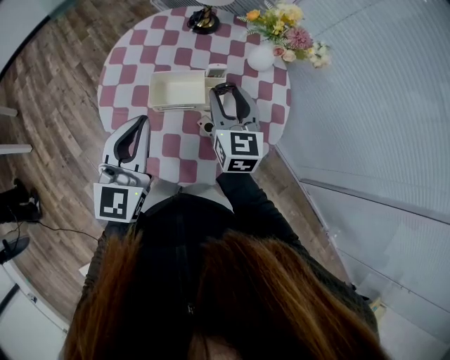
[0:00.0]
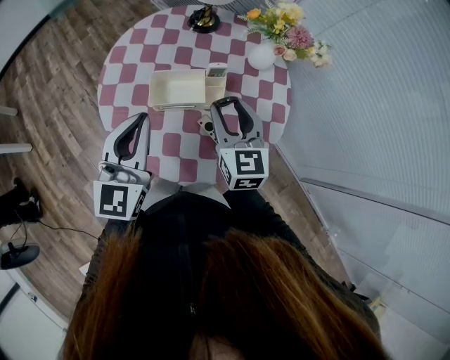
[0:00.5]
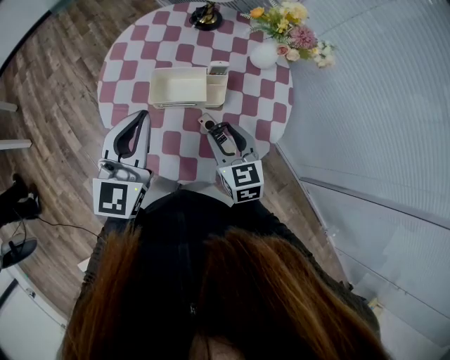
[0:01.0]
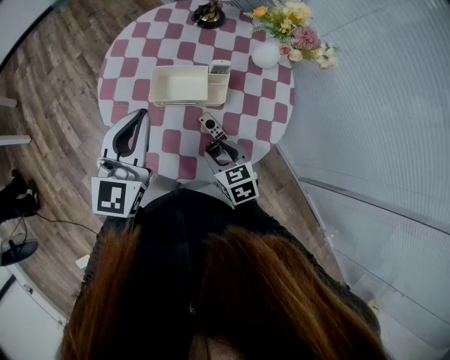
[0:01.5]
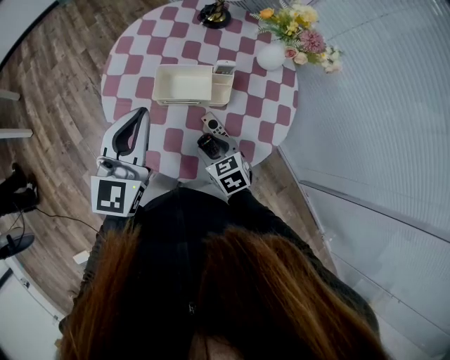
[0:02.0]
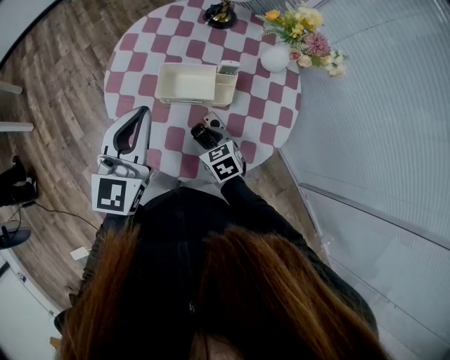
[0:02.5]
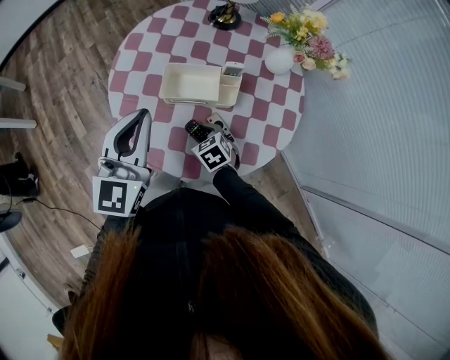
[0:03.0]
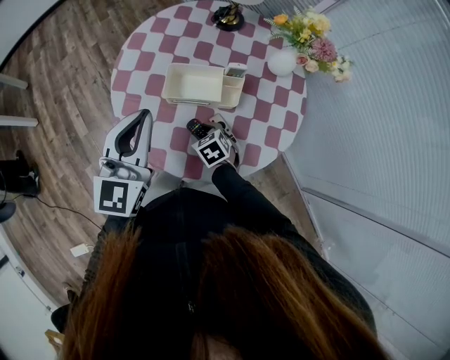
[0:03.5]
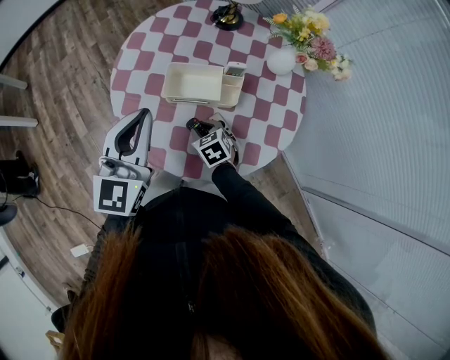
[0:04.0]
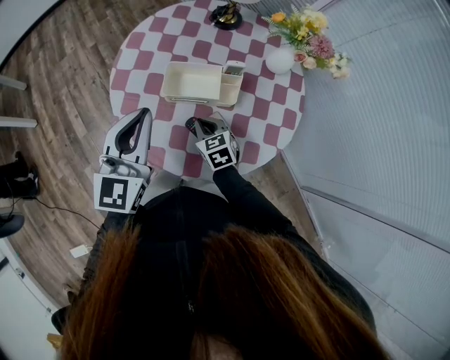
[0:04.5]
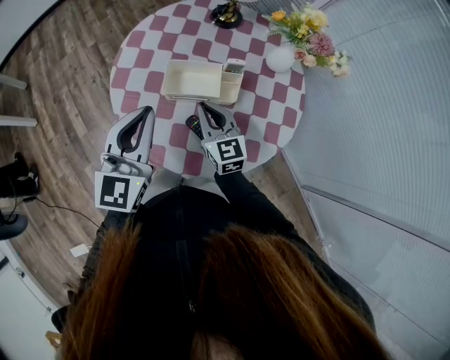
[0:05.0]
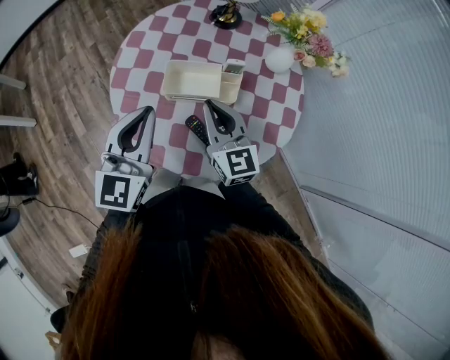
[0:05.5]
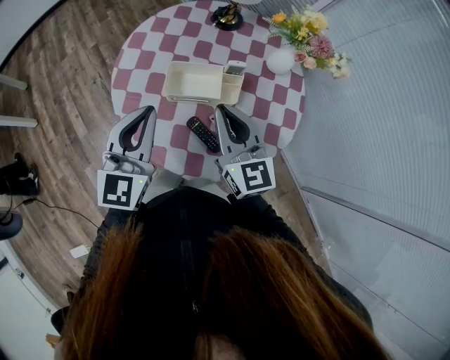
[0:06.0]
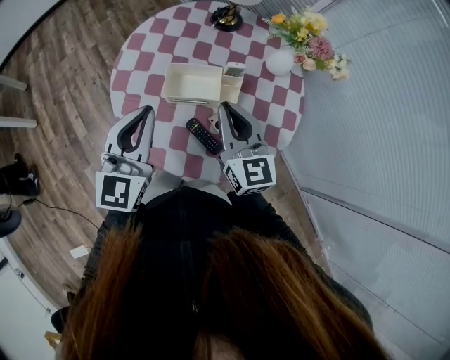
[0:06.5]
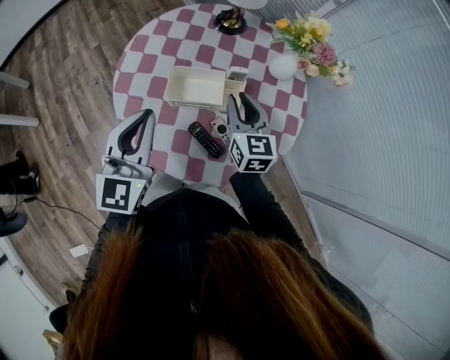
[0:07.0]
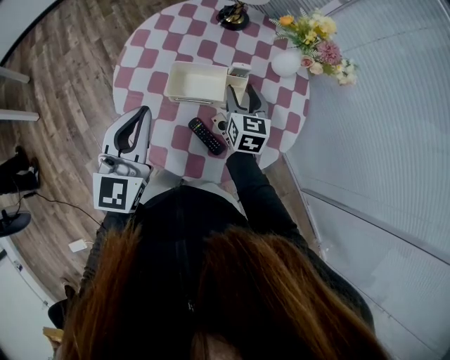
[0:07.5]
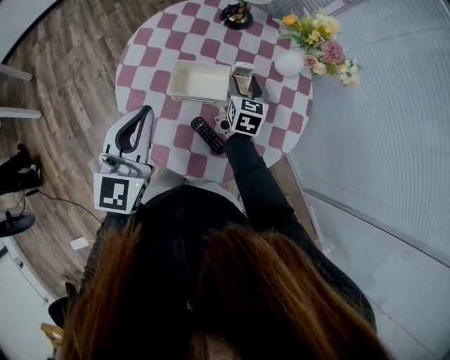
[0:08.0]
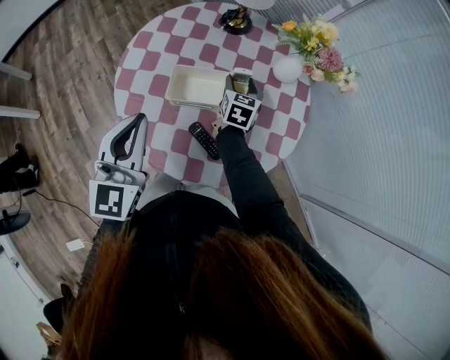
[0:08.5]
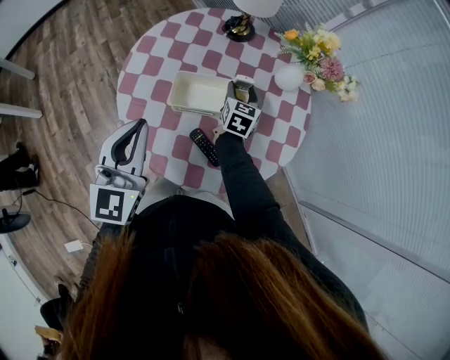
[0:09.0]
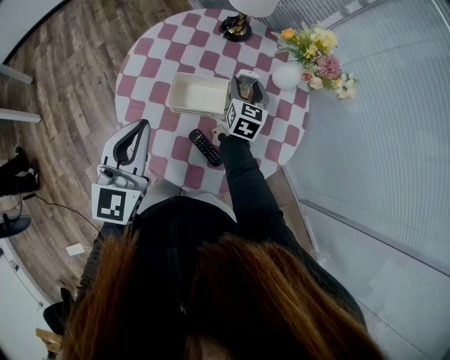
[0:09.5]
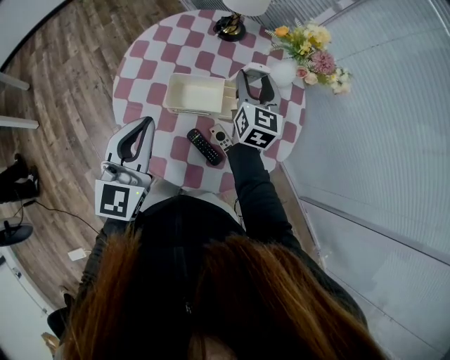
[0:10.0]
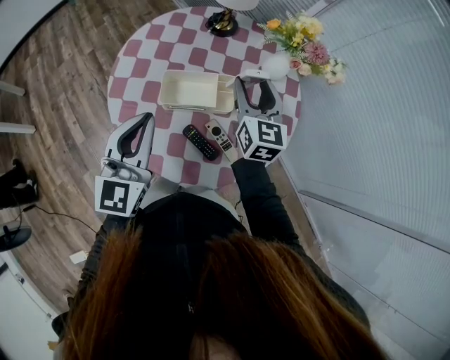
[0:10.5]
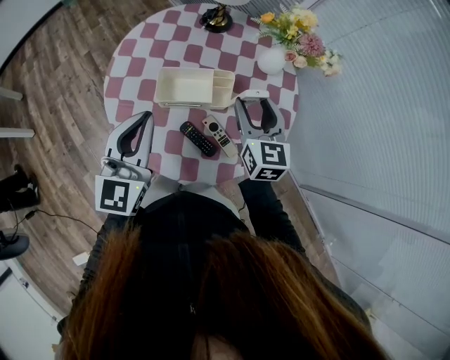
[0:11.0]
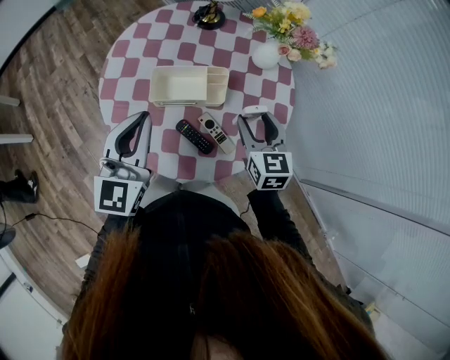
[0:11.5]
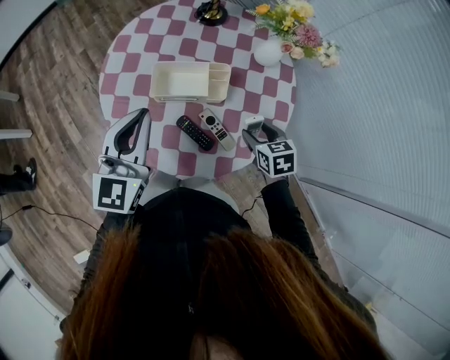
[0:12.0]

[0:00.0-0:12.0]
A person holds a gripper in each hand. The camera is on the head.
0:00.0 to 0:02.0: The right gripper shifts approximately 20 cm downward and backward, and points its fingers some 40 degrees further downward.
0:02.0 to 0:04.0: The right gripper goes some 10 cm forward and downward.
0:04.0 to 0:06.0: The right gripper goes some 25 cm upward, tilts its fingers some 50 degrees upward, and closes.
0:06.0 to 0:08.0: The right gripper moves downward, forward and to the right, about 25 cm, swivels roughly 30 degrees, and opens up.
0:08.0 to 0:10.0: The right gripper goes approximately 10 cm upward.
0:10.0 to 0:12.0: The right gripper heads backward, downward and to the right, covering some 25 cm, and tilts its fingers roughly 40 degrees downward.

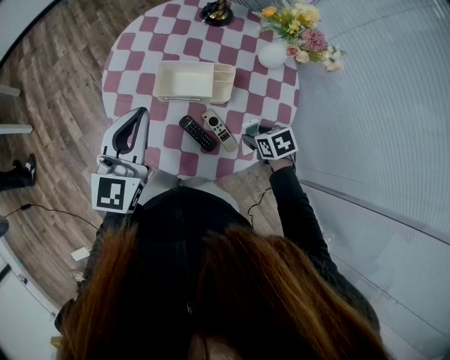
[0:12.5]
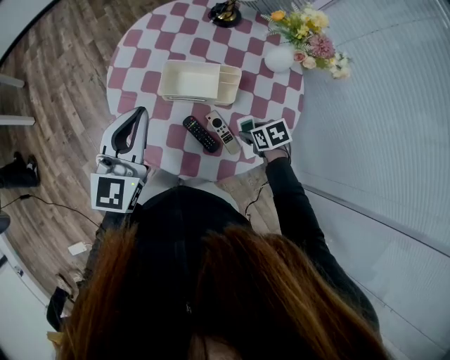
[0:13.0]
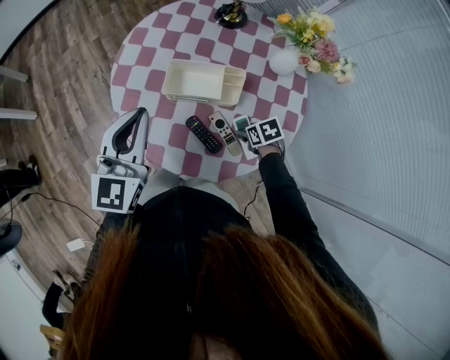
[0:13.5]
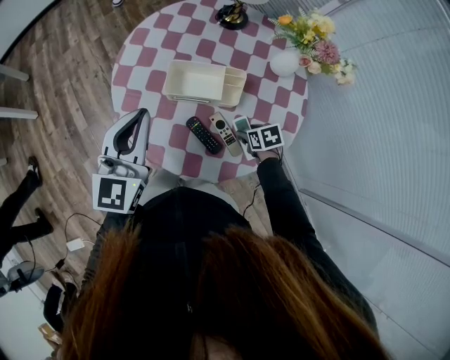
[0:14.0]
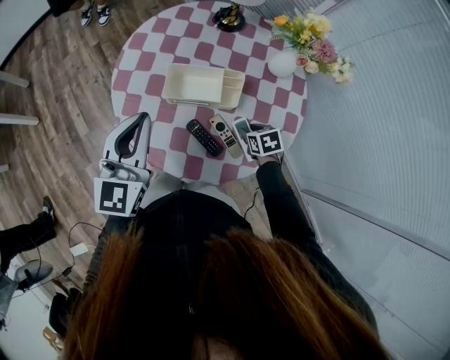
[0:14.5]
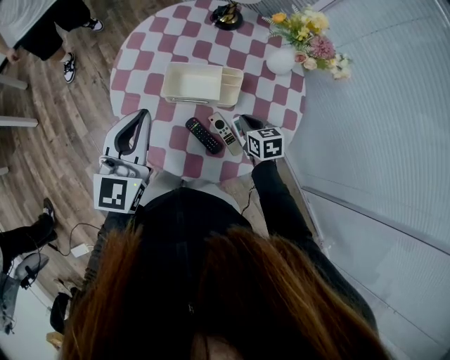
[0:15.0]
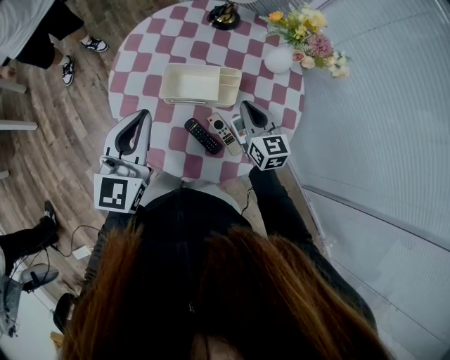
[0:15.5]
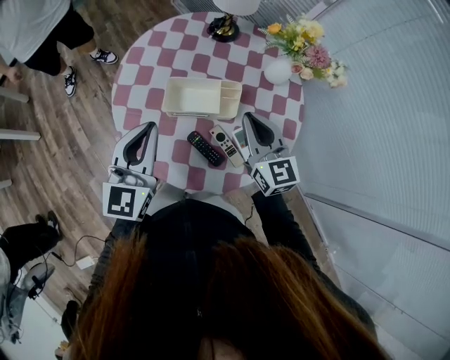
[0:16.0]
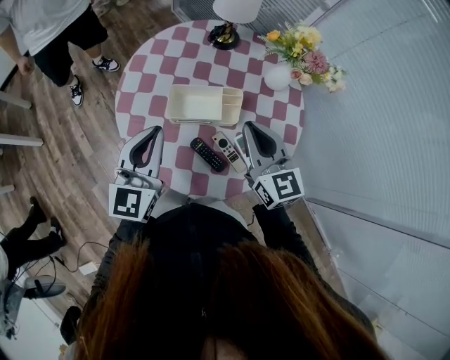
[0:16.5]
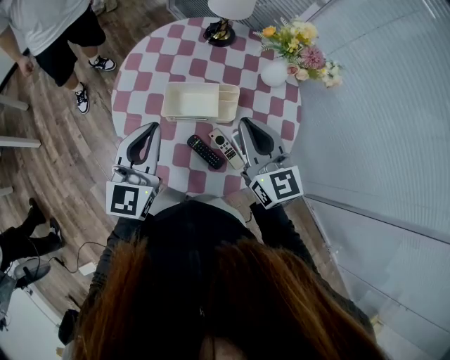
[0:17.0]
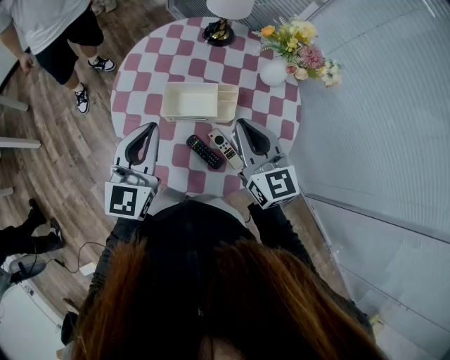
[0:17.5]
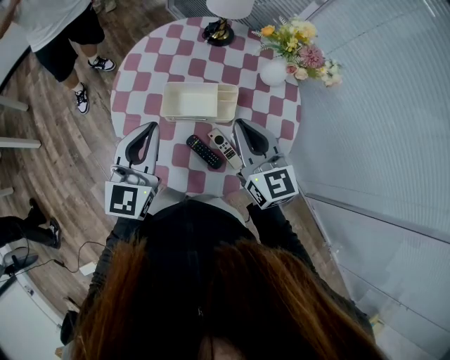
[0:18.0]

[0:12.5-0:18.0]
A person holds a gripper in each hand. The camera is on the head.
0:12.5 to 0:14.5: The right gripper shifts approximately 5 cm downward.
0:14.5 to 0:16.0: The right gripper travels upward by some 25 cm, points its fingers about 50 degrees further upward, and closes its fingers.
0:16.0 to 0:18.0: The right gripper changes place by some 5 cm.

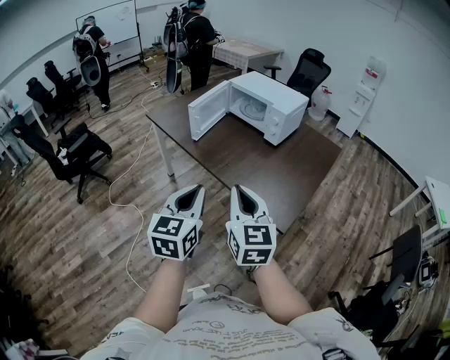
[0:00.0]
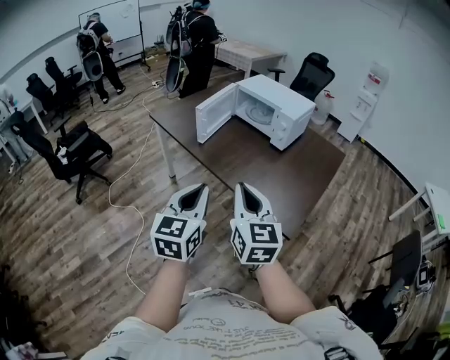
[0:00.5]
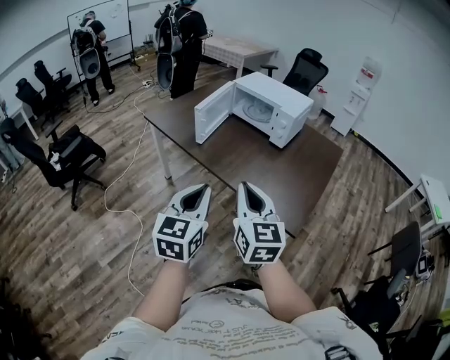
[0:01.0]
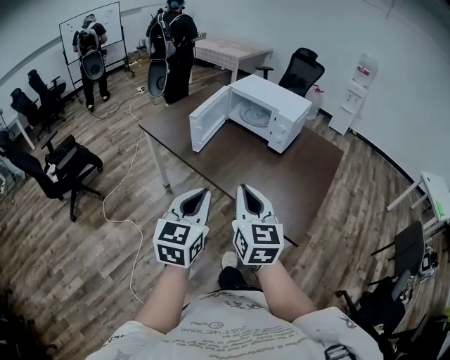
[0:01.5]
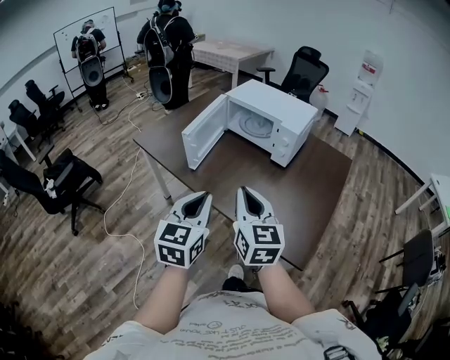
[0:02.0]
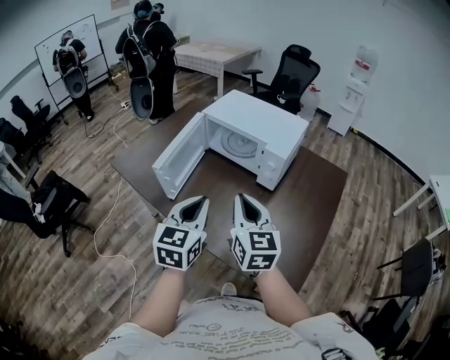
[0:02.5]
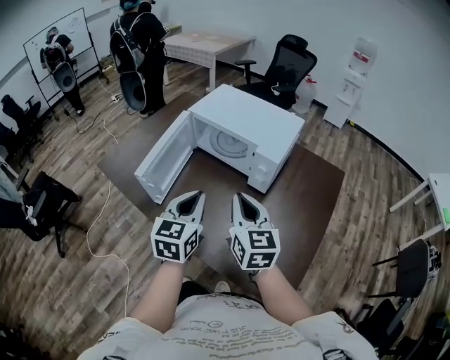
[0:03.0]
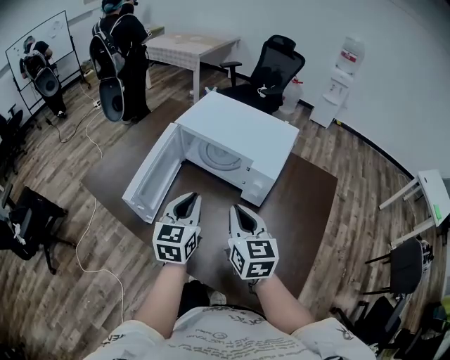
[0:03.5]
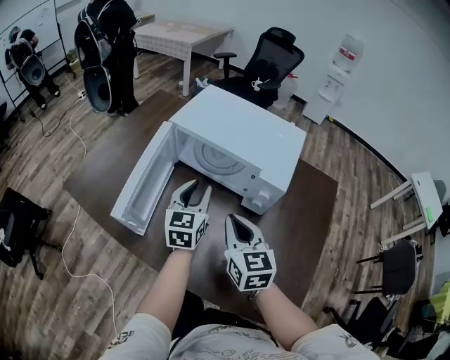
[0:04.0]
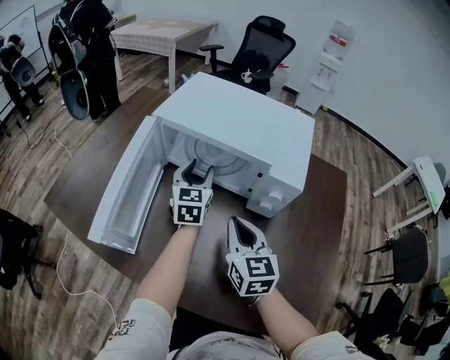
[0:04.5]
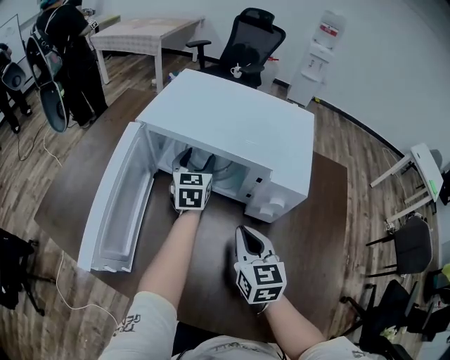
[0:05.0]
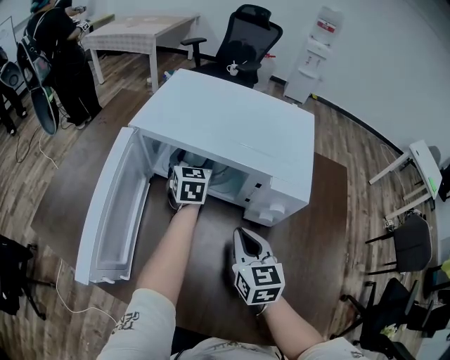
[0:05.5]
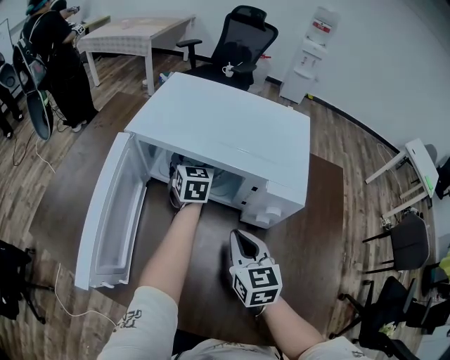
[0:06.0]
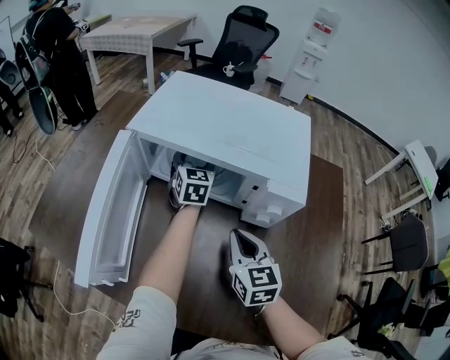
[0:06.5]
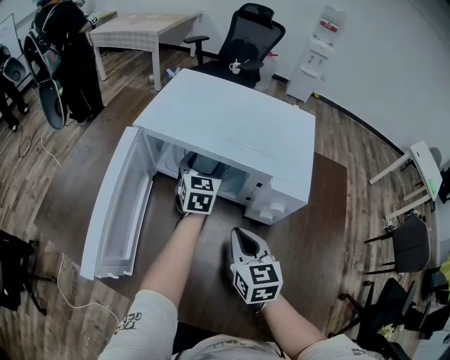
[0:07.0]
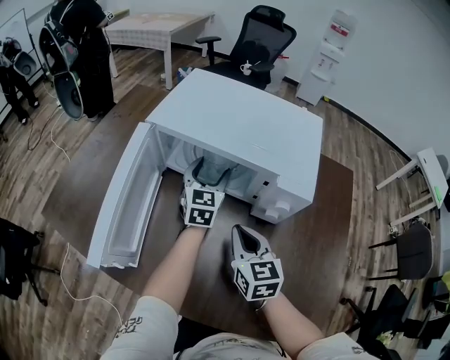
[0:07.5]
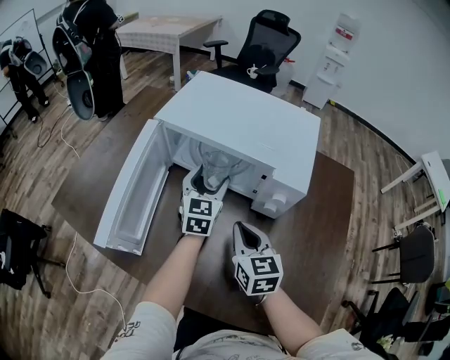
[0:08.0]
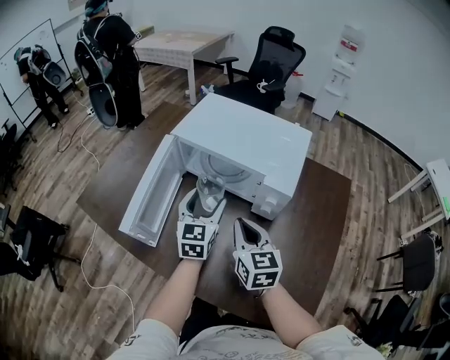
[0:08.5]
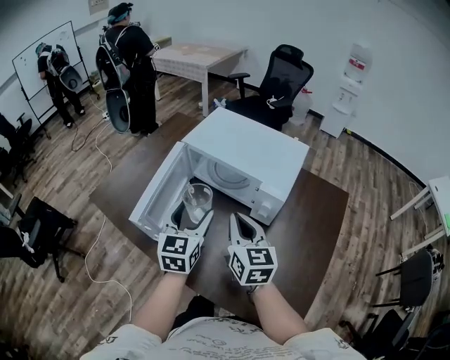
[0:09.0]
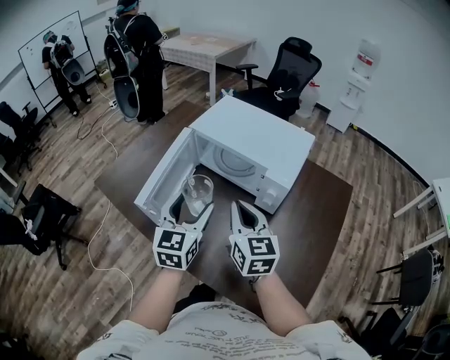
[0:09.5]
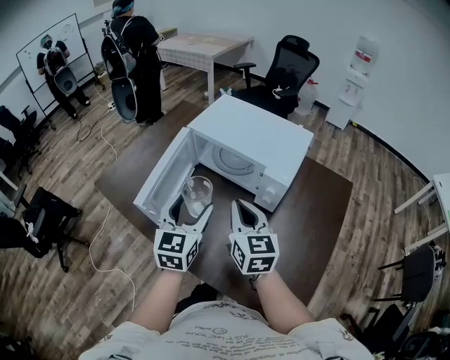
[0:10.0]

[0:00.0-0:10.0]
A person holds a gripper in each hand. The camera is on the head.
0:00.0 to 0:02.0: Both grippers travel together forward, about 20 cm.
0:02.0 to 0:04.0: The two grippers go approximately 40 cm forward.
0:04.0 to 0:06.0: The right gripper heads downward and forward, covering approximately 15 cm, while the left gripper shifts some 30 cm forward and downward, and opens its fingers.
0:06.0 to 0:08.0: The left gripper shifts about 15 cm backward.
0:08.0 to 0:10.0: The left gripper heads backward and upward, covering some 30 cm, while the right gripper heads upward, covering roughly 15 cm.
